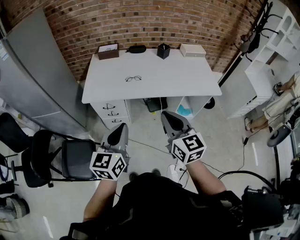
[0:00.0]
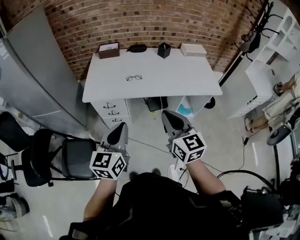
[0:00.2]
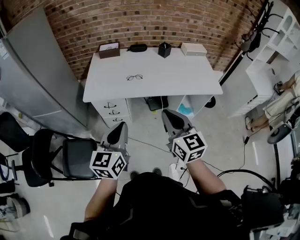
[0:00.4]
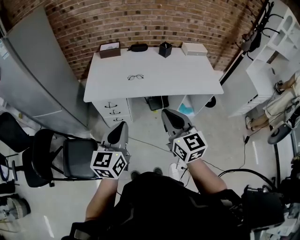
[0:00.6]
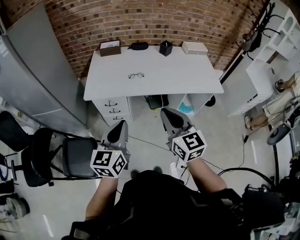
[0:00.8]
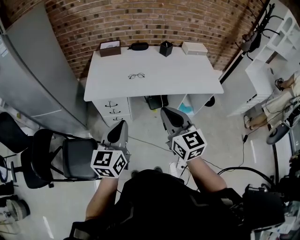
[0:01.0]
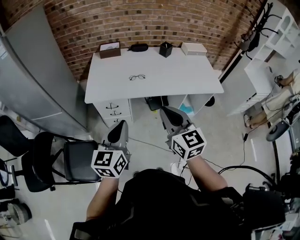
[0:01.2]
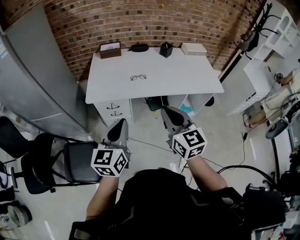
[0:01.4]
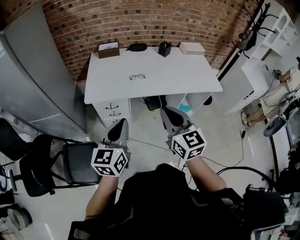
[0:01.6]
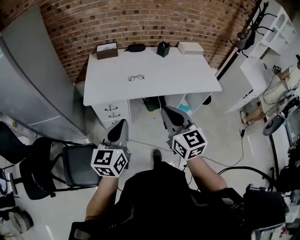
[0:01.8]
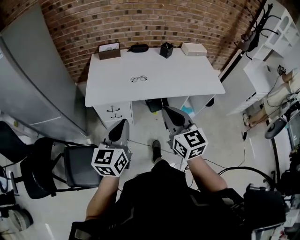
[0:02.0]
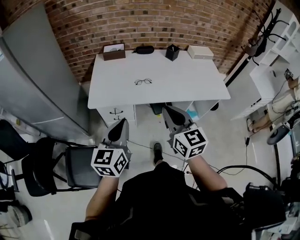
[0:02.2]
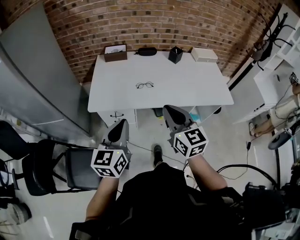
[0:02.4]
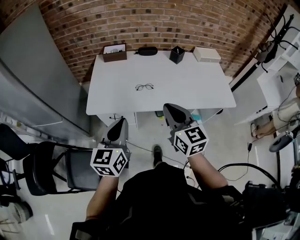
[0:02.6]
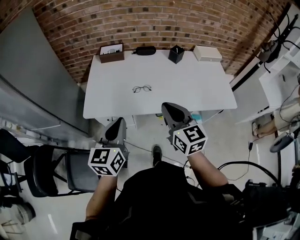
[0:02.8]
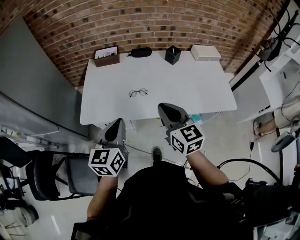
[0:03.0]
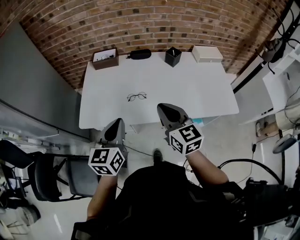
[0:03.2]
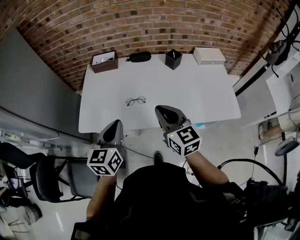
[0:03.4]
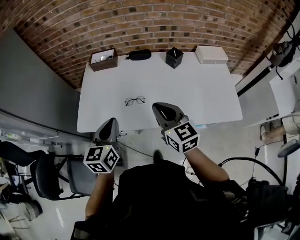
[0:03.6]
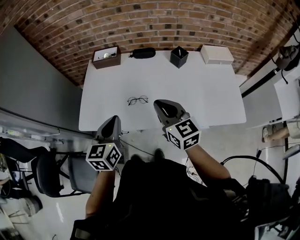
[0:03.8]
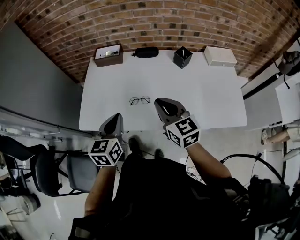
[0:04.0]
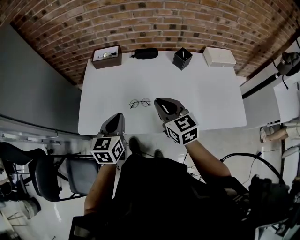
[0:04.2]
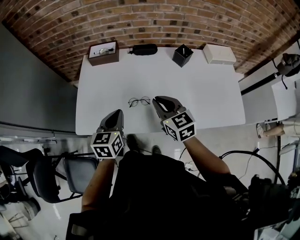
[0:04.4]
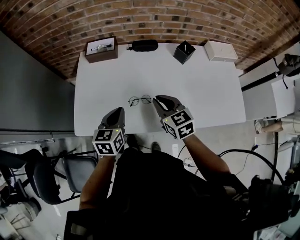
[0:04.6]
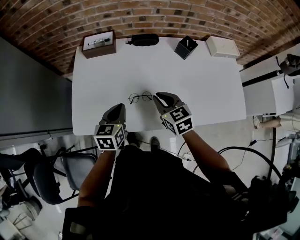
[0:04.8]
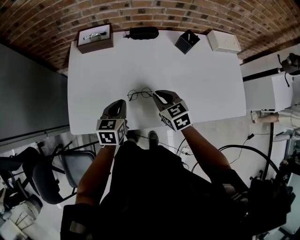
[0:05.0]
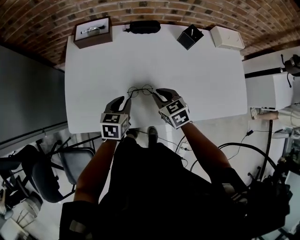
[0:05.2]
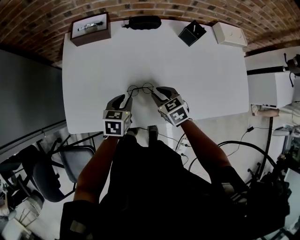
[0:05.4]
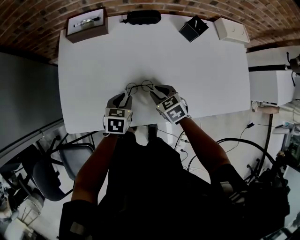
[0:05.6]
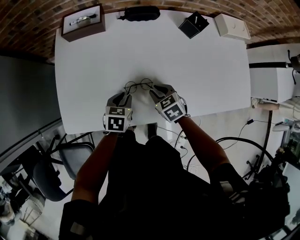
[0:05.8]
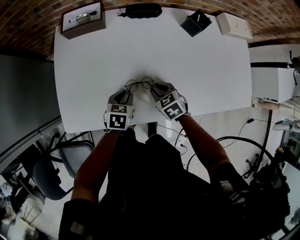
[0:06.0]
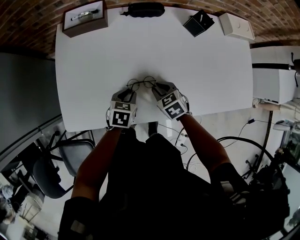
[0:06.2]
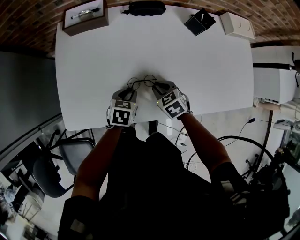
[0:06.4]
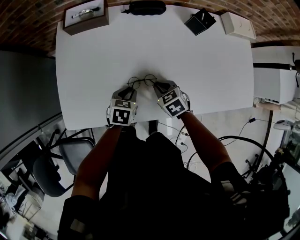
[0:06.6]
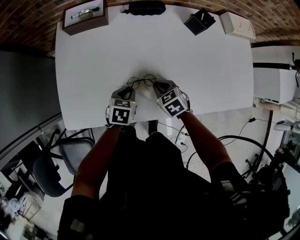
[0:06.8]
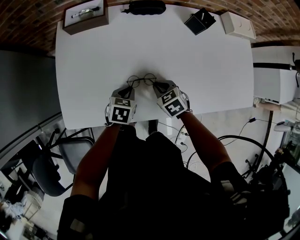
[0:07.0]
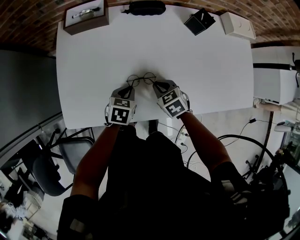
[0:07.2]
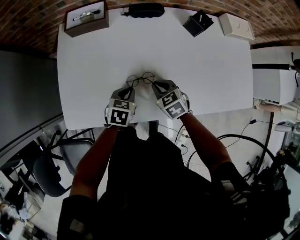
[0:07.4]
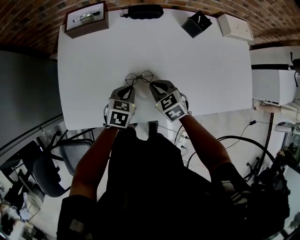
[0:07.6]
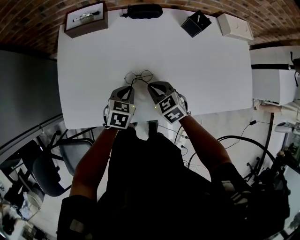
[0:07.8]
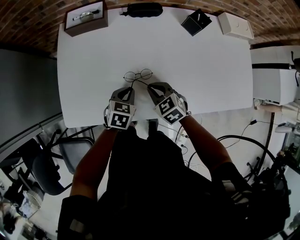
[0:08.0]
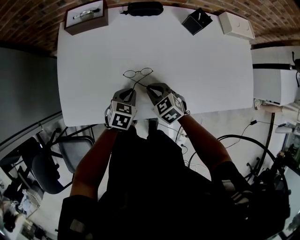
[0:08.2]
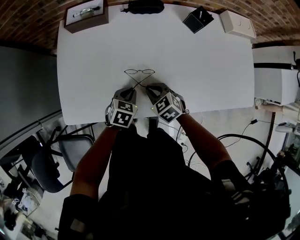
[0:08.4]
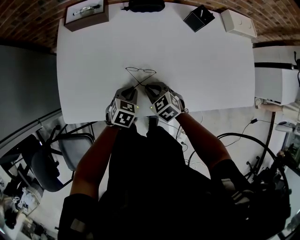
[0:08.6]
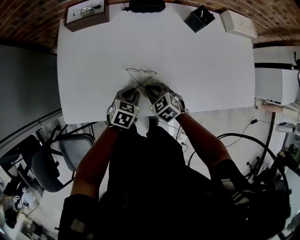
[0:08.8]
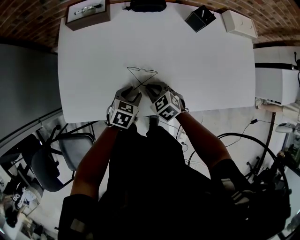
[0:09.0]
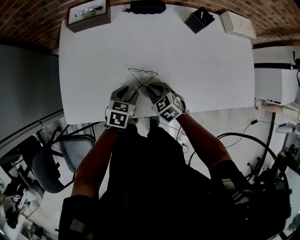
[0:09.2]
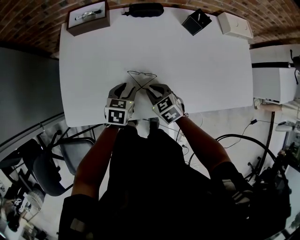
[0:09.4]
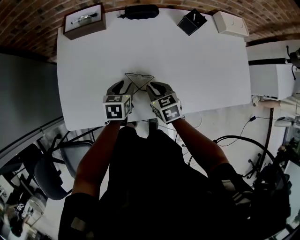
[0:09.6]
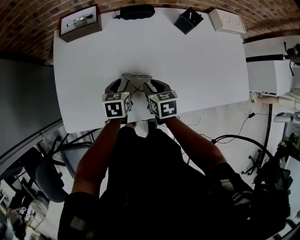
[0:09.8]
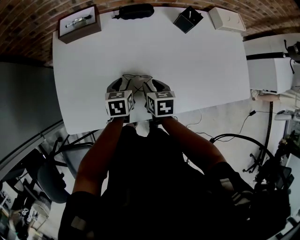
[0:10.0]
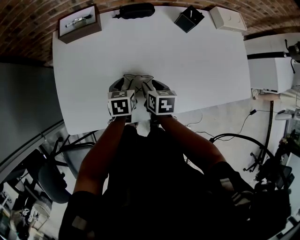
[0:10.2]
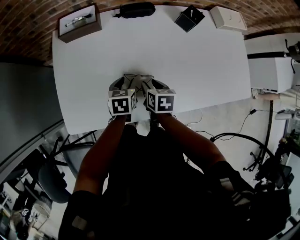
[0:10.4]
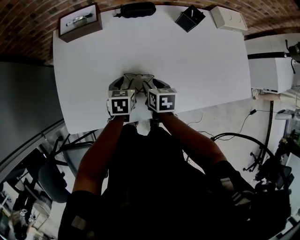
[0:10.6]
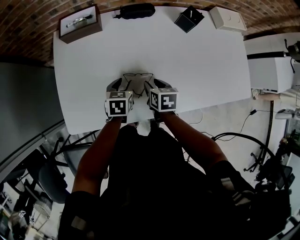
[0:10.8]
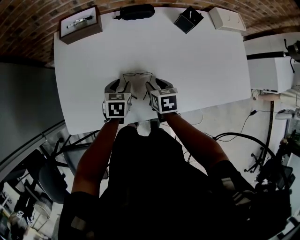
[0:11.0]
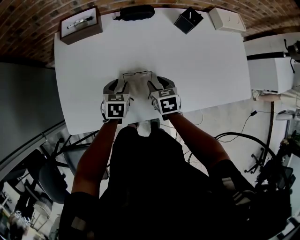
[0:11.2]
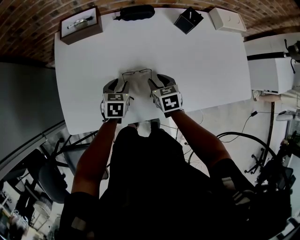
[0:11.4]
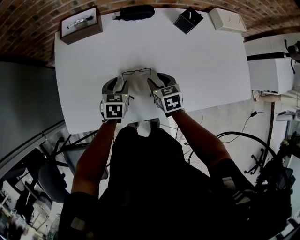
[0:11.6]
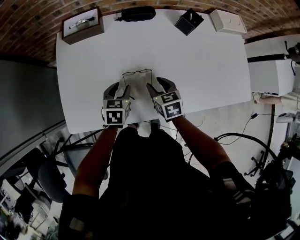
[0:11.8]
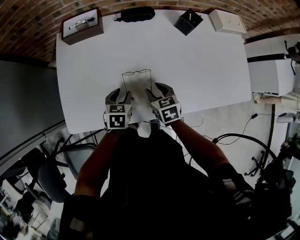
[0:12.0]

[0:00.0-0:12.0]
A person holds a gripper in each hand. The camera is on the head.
0:00.0 to 0:01.6: Both grippers travel together to the left, roughly 10 cm.
0:01.6 to 0:03.0: Both grippers move forward, roughly 20 cm.
0:03.0 to 0:04.4: Both grippers travel together forward and downward, some 20 cm.
0:04.4 to 0:06.0: Both grippers move downward, some 25 cm. The right gripper angles its fingers downward, by about 30 degrees. The left gripper swivels approximately 30 degrees, and opens.
0:06.0 to 0:07.6: The right gripper changes place by roughly 5 cm.
0:07.6 to 0:09.0: The left gripper changes place by approximately 5 cm, and opens its fingers. The right gripper changes place by roughly 5 cm.
0:09.0 to 0:10.4: The right gripper ends up roughly 5 cm from where it was, twists some 50 degrees clockwise, seen from behind, and opens; the left gripper heads forward, covering approximately 10 cm, and changes its angle by about 20 degrees.
0:10.4 to 0:12.0: The right gripper changes its angle by some 20 degrees. The left gripper changes place by about 5 cm.

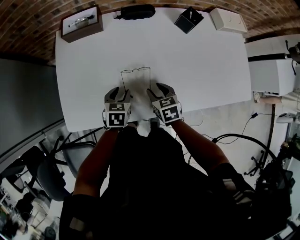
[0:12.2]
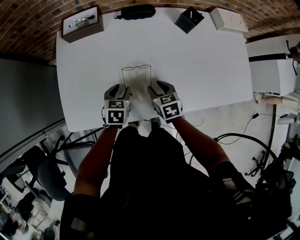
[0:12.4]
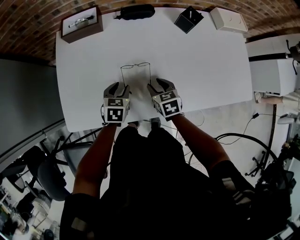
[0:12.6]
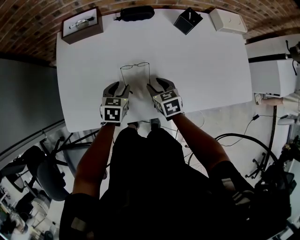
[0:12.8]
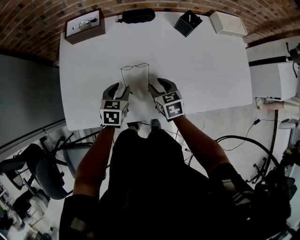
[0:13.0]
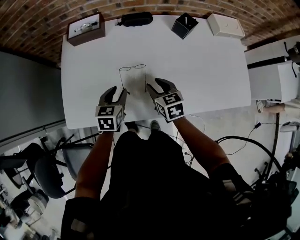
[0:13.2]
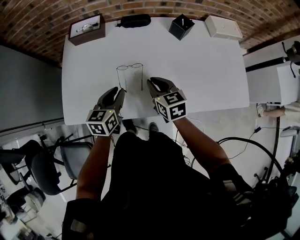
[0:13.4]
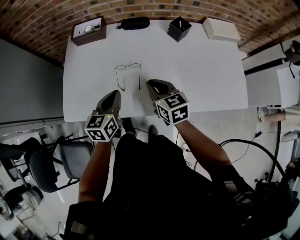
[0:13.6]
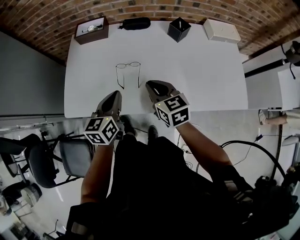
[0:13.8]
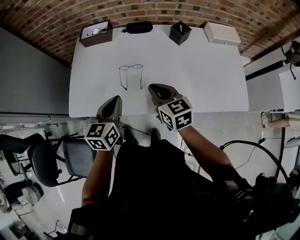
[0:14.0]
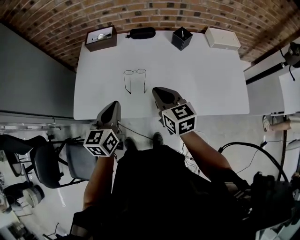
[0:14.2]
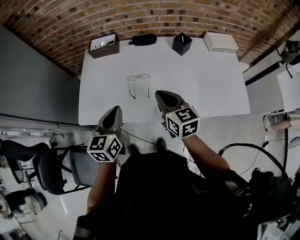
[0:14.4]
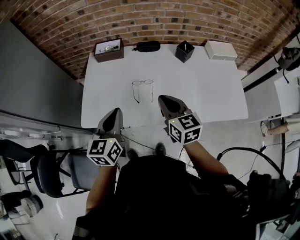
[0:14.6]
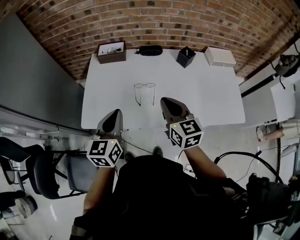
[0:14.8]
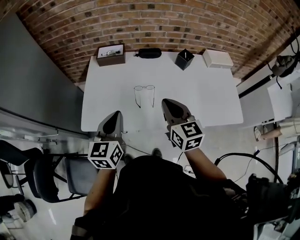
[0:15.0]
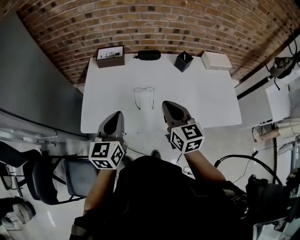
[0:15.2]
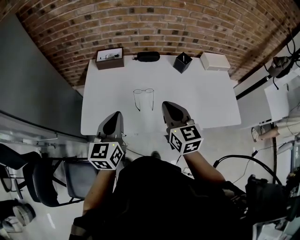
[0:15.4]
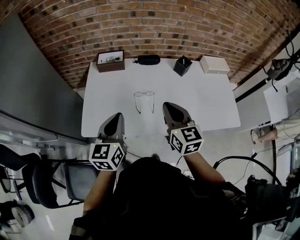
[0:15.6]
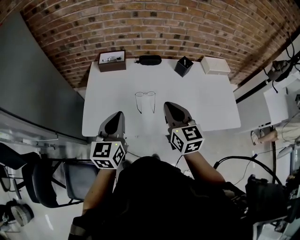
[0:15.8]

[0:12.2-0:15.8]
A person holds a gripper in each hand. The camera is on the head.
0:12.2 to 0:14.0: The left gripper shifts approximately 25 cm upward and backward, changes its angle by about 30 degrees, and closes. The right gripper is displaced upward by some 20 cm, rotates approximately 30 degrees, and closes up.
0:14.0 to 0:15.8: The left gripper travels upward and to the left by approximately 15 cm, while the right gripper moves upward, roughly 10 cm.

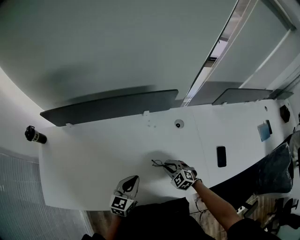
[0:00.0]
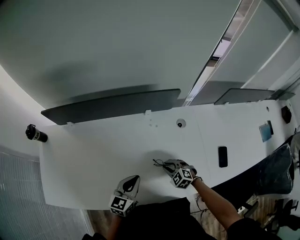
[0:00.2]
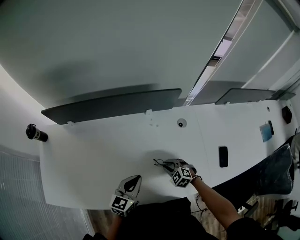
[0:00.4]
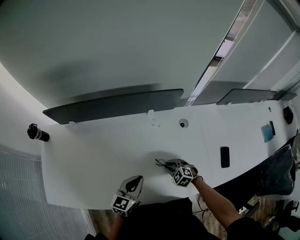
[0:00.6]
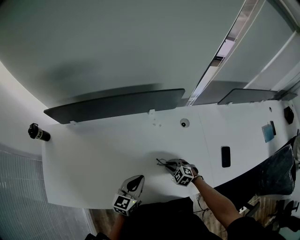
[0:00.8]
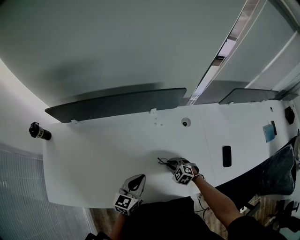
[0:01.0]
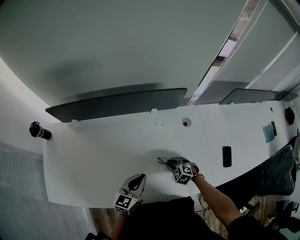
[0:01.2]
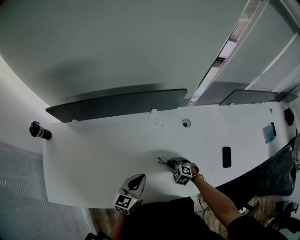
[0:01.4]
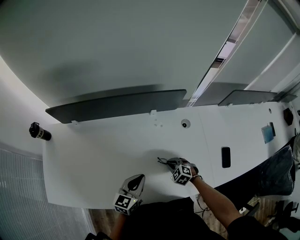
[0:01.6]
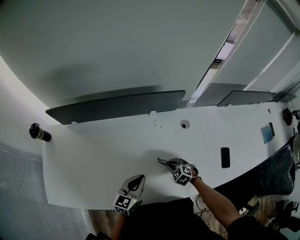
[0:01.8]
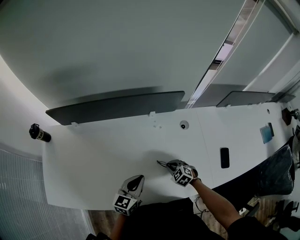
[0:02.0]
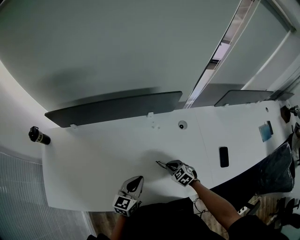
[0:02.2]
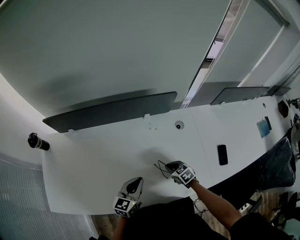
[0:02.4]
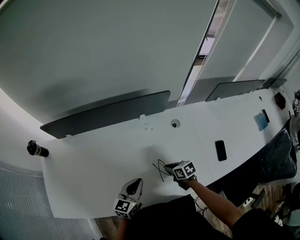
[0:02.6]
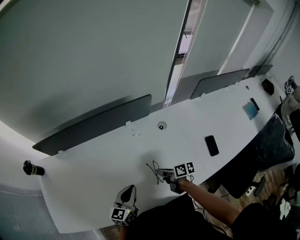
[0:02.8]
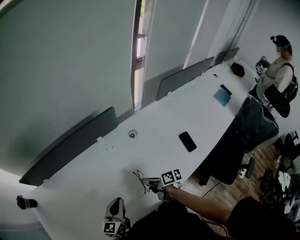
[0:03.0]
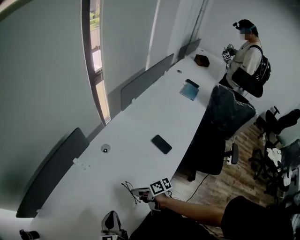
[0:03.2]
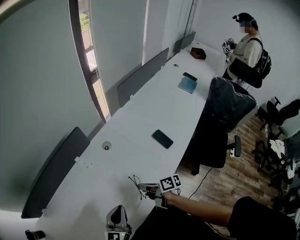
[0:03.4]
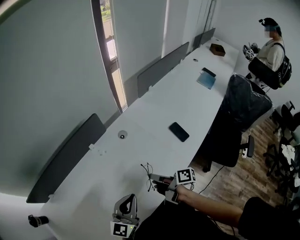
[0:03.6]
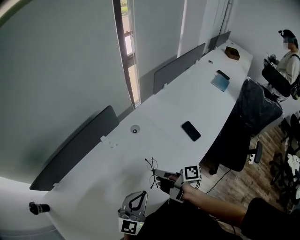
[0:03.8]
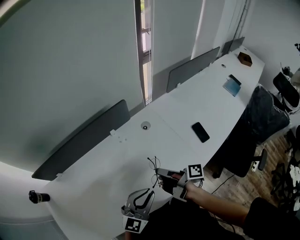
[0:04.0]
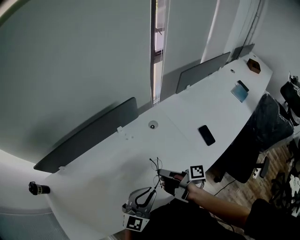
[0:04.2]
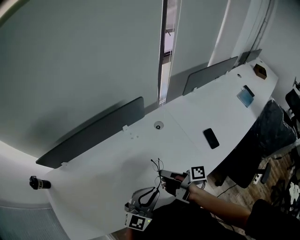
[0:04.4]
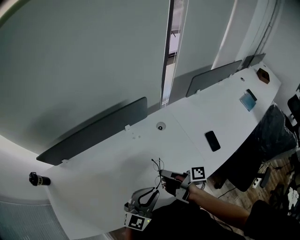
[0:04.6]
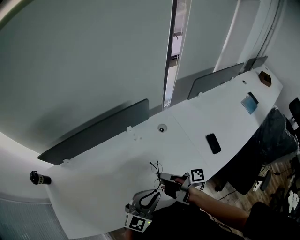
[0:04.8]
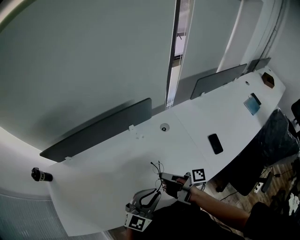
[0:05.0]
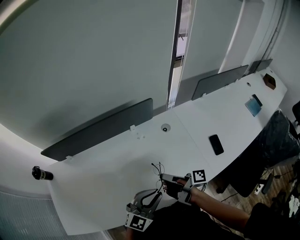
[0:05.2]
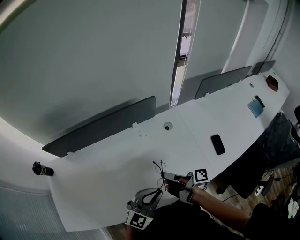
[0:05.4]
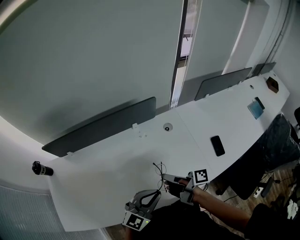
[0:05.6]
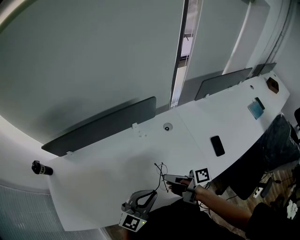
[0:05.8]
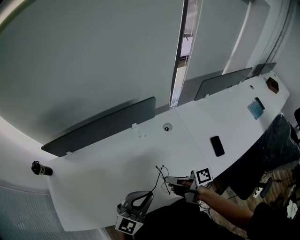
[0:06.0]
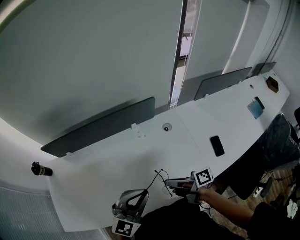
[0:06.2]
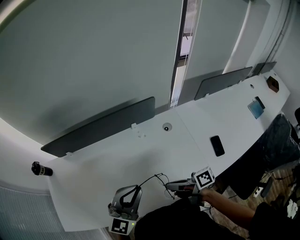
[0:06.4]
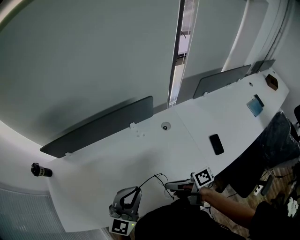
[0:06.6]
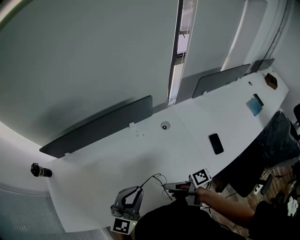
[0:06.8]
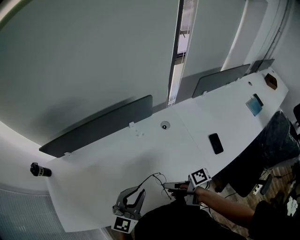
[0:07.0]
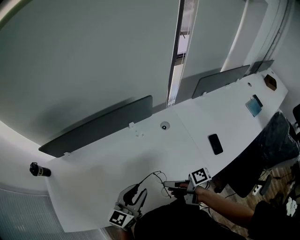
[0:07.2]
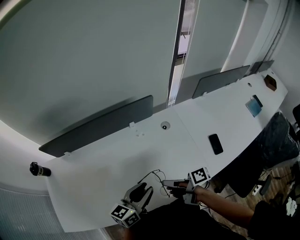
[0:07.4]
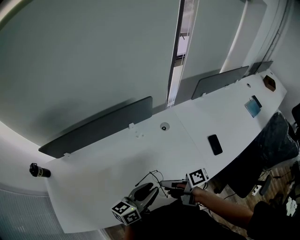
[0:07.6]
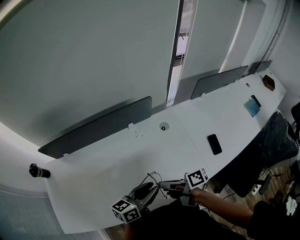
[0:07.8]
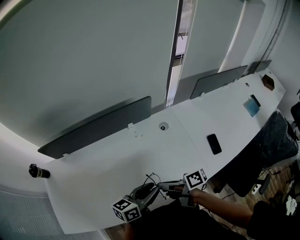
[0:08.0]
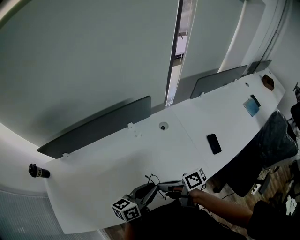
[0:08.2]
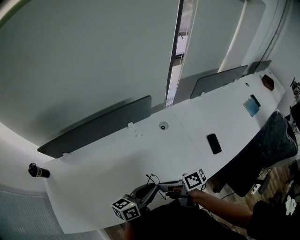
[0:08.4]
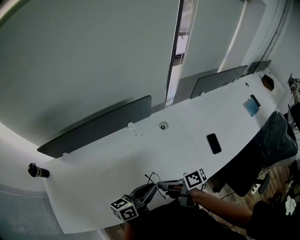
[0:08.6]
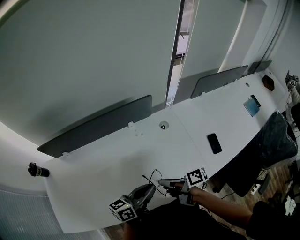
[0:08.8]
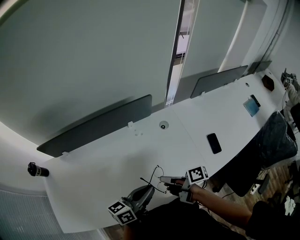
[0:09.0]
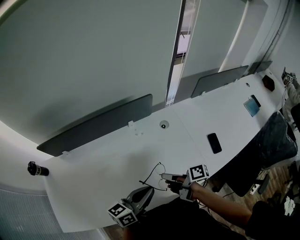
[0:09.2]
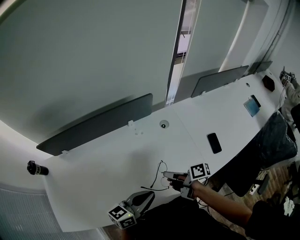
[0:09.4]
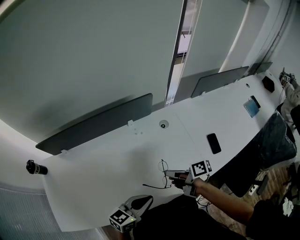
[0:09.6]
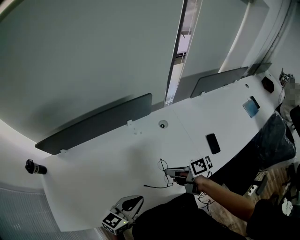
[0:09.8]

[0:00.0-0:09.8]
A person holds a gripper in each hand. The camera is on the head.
0:00.0 to 0:01.4: The right gripper goes approximately 5 cm downward.
0:01.4 to 0:02.8: The right gripper heads upward, covering about 5 cm, and twists approximately 90 degrees clockwise, seen from behind.
0:02.8 to 0:04.2: Both grippers move upward, approximately 15 cm. The right gripper swivels approximately 40 degrees; the left gripper changes its angle by about 40 degrees.
0:04.2 to 0:05.6: The grippers stay close to where they were, moving slightly.
0:05.6 to 0:07.0: The right gripper changes place by roughly 5 cm.
0:07.0 to 0:08.4: The left gripper goes some 5 cm downward, and twists approximately 60 degrees counterclockwise, seen from behind.
0:08.4 to 0:09.8: The right gripper travels to the right by approximately 5 cm. The left gripper travels to the left by about 5 cm, and rotates roughly 30 degrees.
